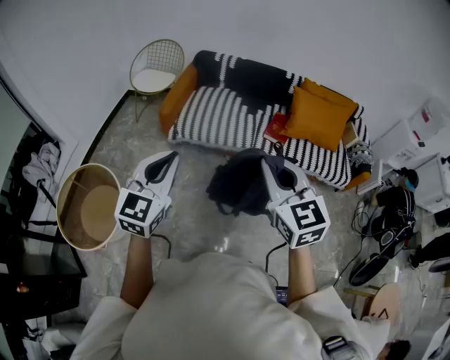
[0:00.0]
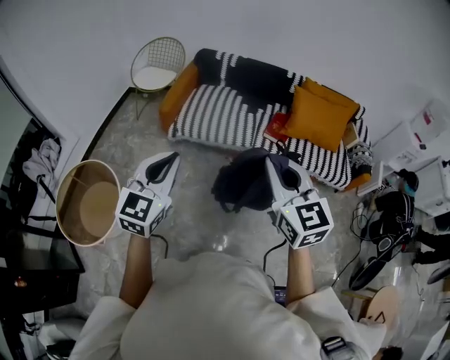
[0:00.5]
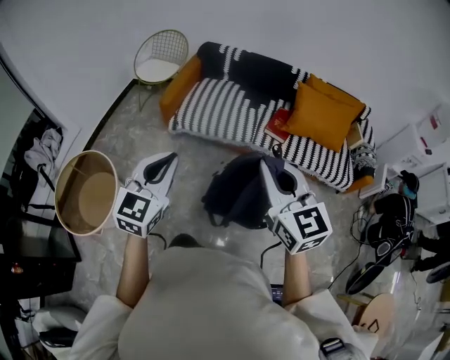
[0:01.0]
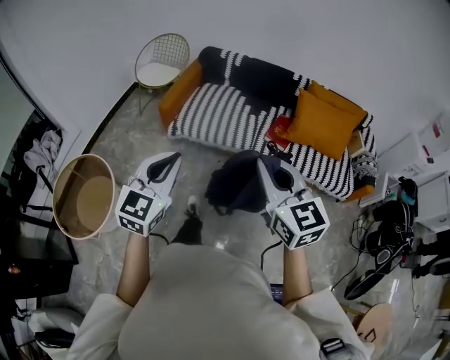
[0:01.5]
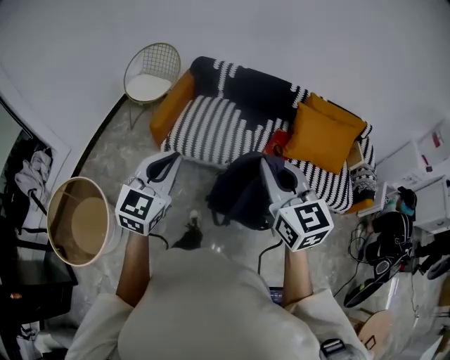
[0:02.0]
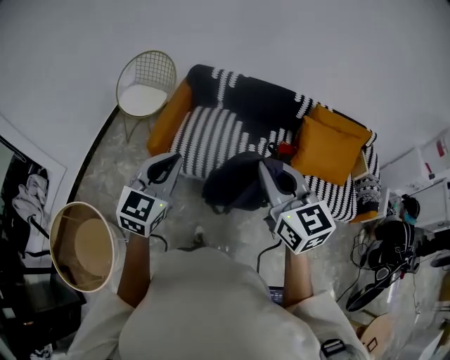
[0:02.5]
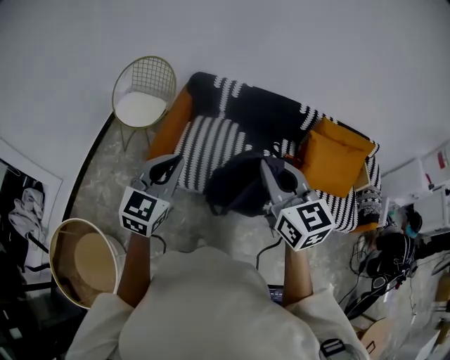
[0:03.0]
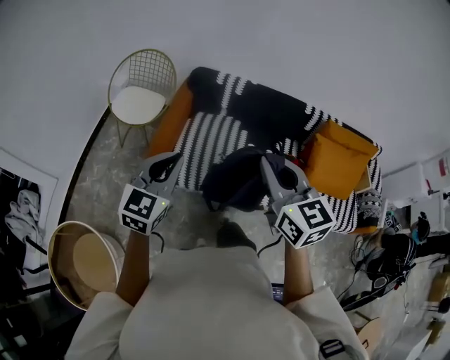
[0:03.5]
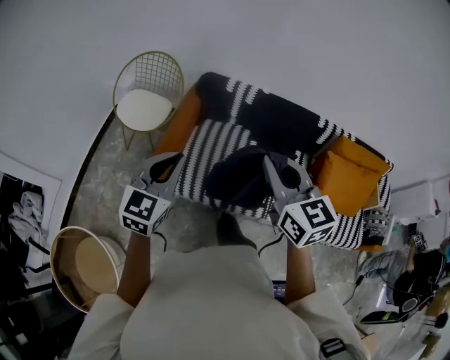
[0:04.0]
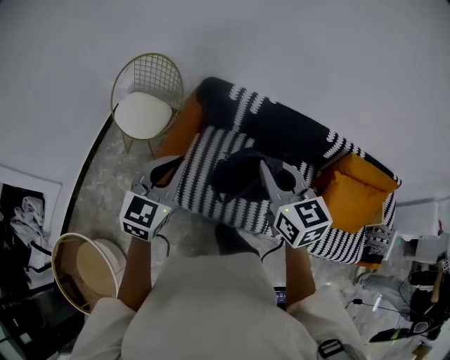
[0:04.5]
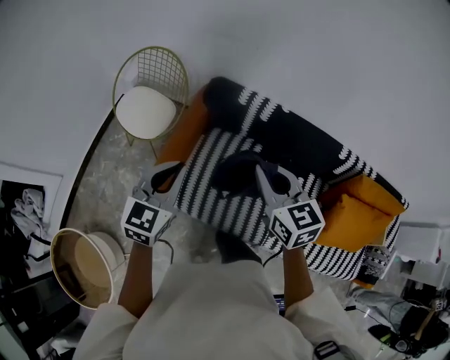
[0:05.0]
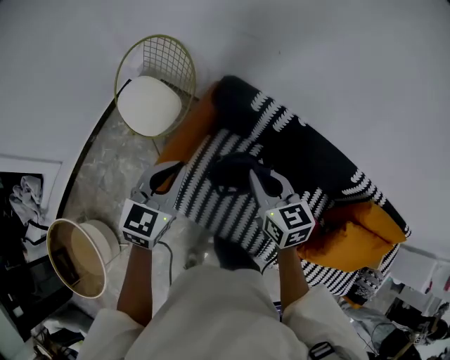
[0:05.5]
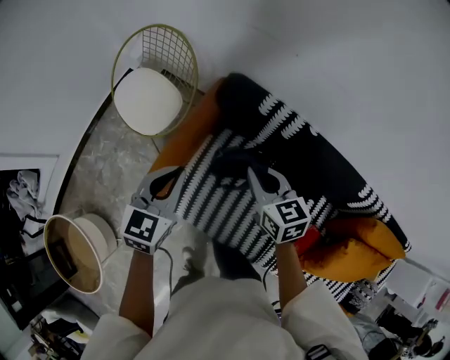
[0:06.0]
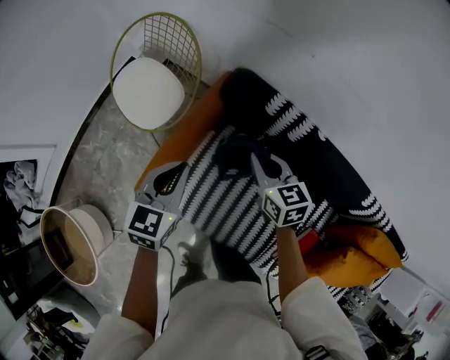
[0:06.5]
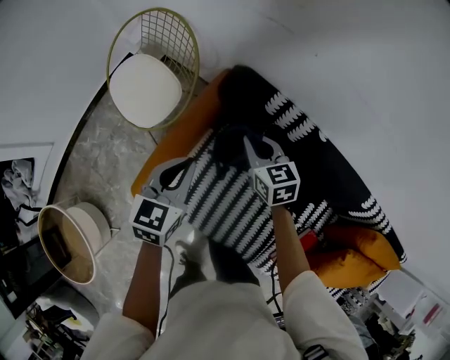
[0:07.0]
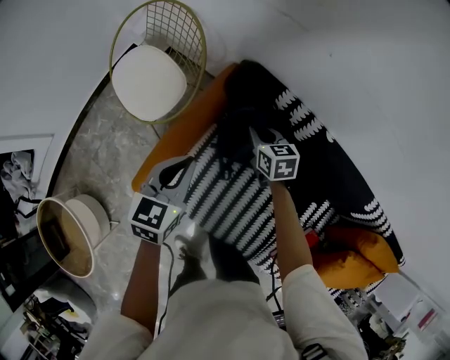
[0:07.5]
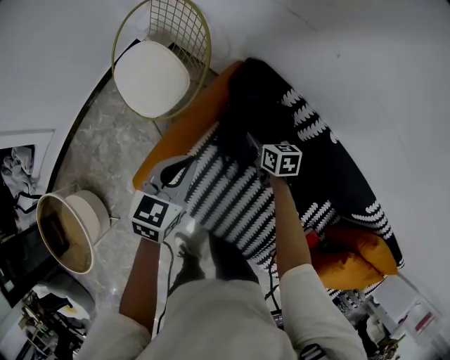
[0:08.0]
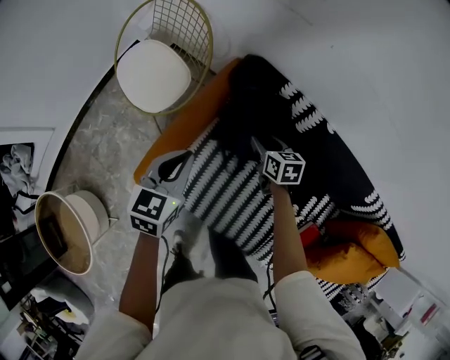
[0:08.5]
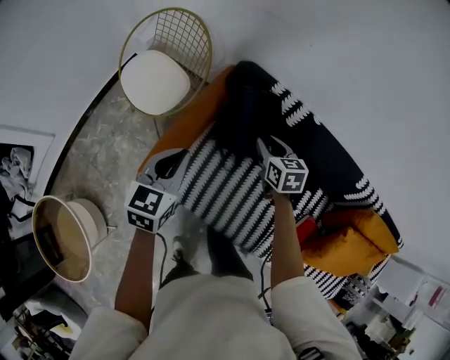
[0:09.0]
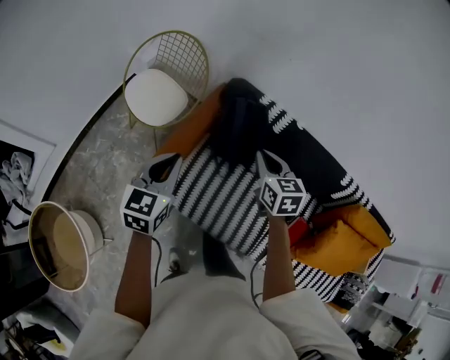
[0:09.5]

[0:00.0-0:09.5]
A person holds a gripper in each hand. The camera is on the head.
0:00.0 to 0:02.0: The two grippers go roughly 20 cm forward.
0:02.0 to 0:04.0: The two grippers travel together, forward, some 50 cm.
0:04.0 to 0:05.5: The left gripper goes about 30 cm forward. The right gripper goes approximately 40 cm forward and downward, and rotates some 20 degrees.
0:05.5 to 0:07.5: The right gripper goes about 35 cm downward and forward. Meanwhile the left gripper shifts roughly 20 cm downward and forward.
0:07.5 to 0:09.5: The left gripper heads backward, upward and to the left, covering approximately 25 cm. The right gripper is displaced backward and upward by some 35 cm, and opens, then closes once more.

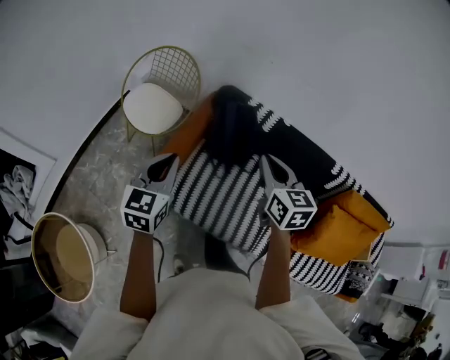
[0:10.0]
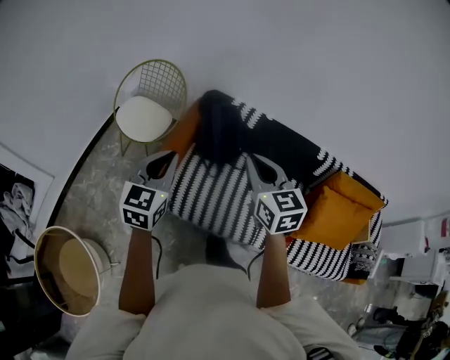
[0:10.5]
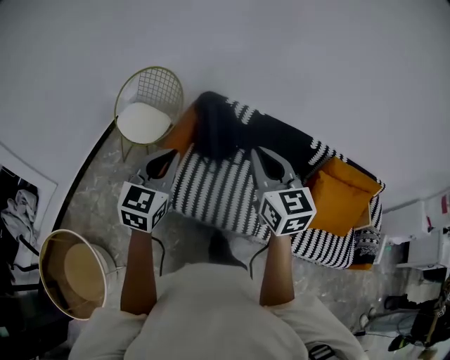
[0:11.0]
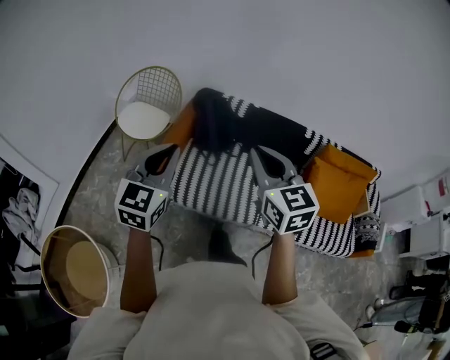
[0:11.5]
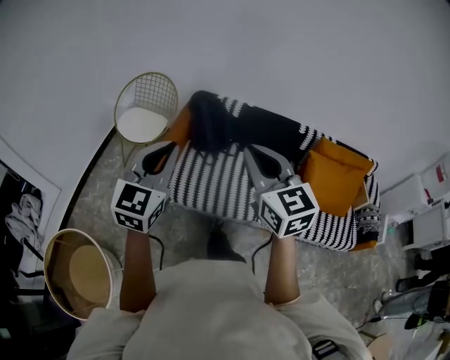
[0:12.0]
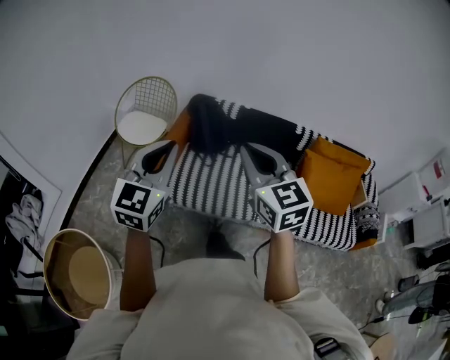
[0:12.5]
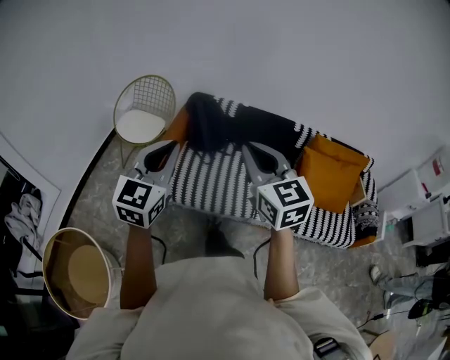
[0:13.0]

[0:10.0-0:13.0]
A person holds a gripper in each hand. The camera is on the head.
0:10.0 to 0:11.5: The two grippers go about 30 cm backward and upward. The left gripper turns by some 20 degrees.
0:11.5 to 0:13.0: Both grippers travel together backward, some 10 cm.

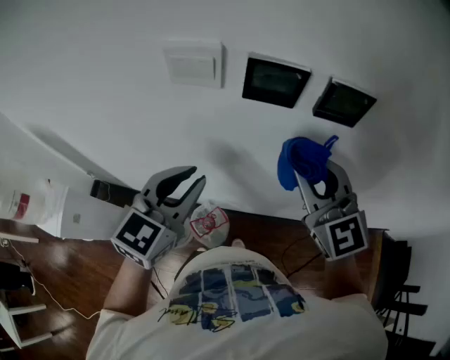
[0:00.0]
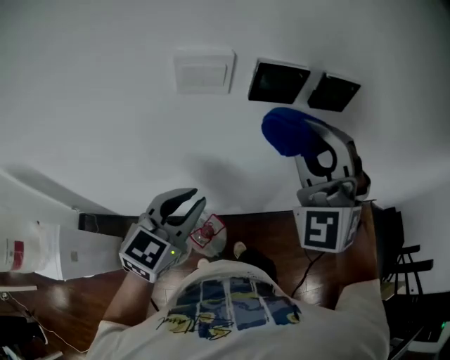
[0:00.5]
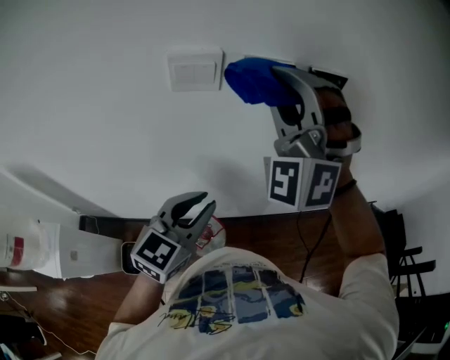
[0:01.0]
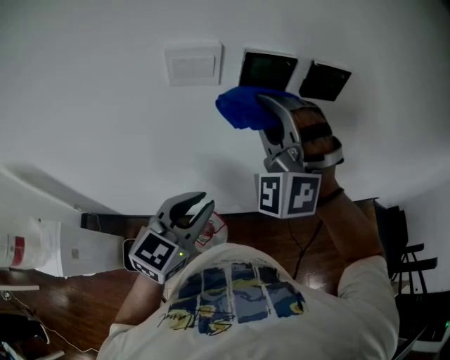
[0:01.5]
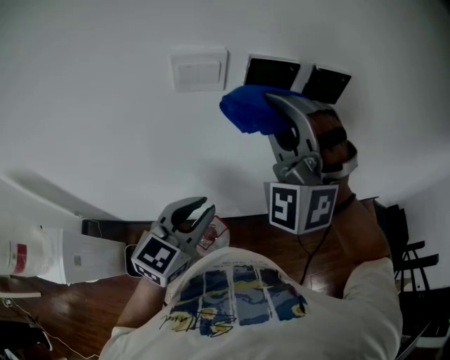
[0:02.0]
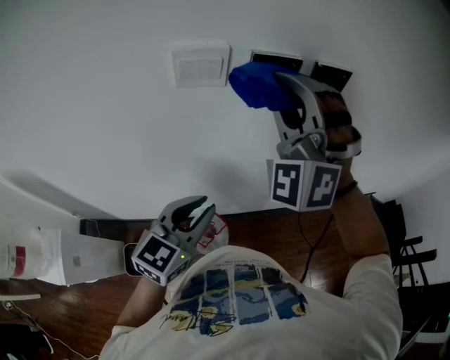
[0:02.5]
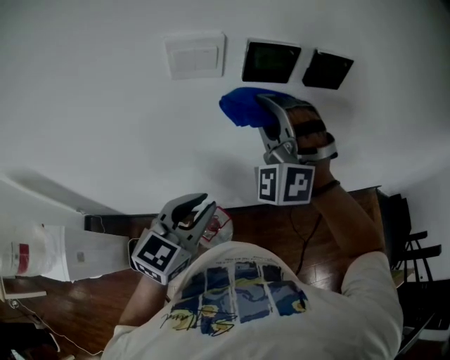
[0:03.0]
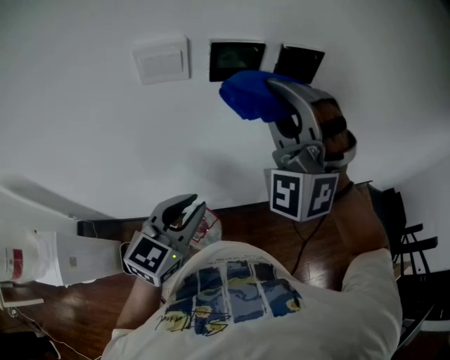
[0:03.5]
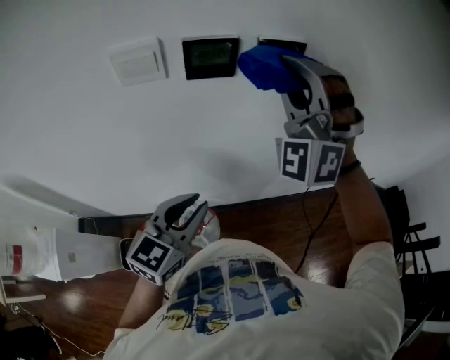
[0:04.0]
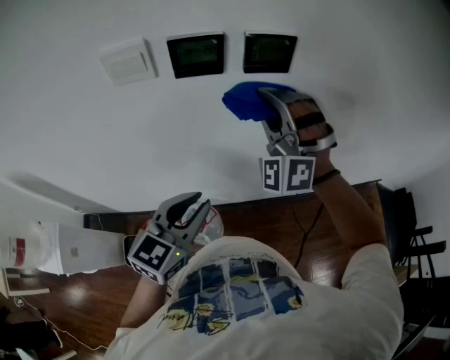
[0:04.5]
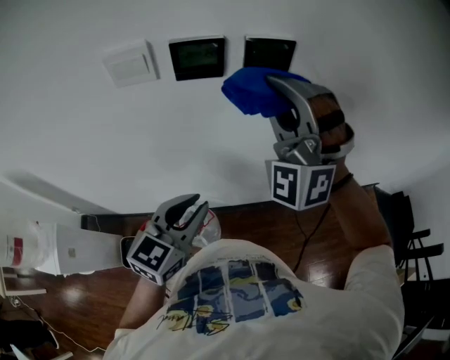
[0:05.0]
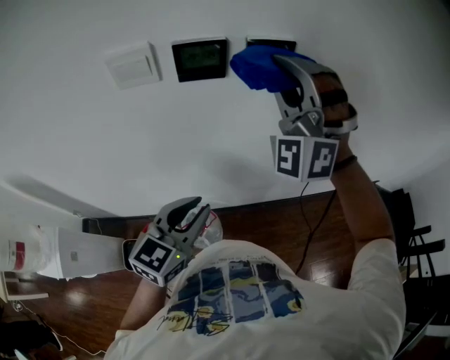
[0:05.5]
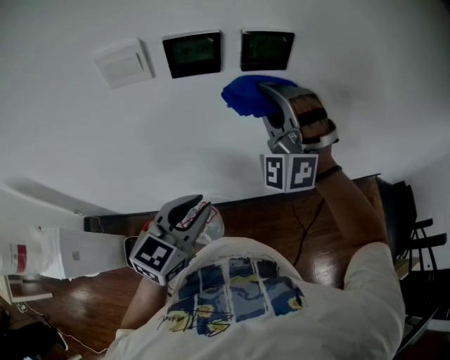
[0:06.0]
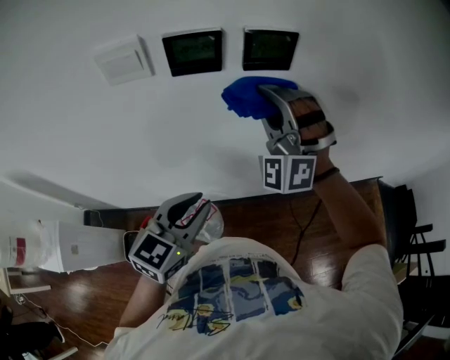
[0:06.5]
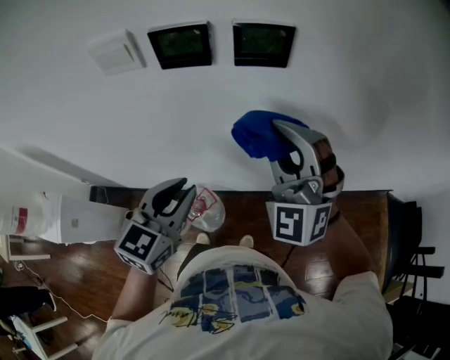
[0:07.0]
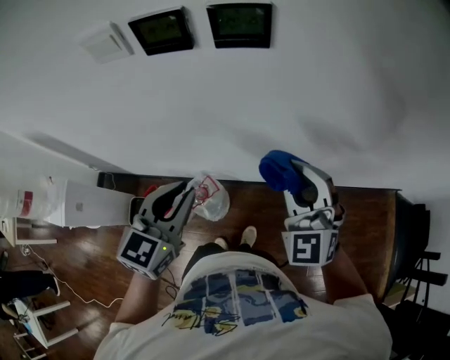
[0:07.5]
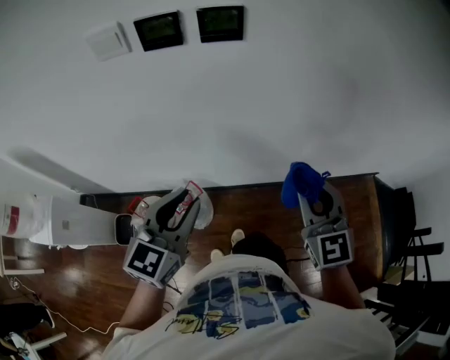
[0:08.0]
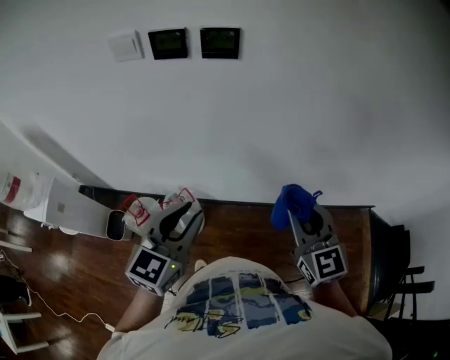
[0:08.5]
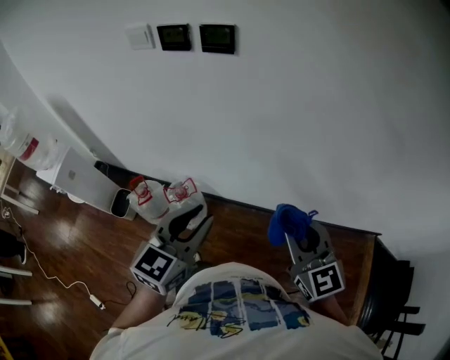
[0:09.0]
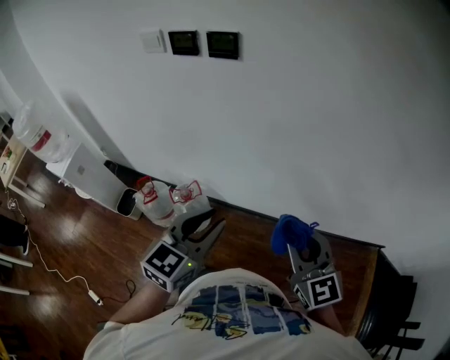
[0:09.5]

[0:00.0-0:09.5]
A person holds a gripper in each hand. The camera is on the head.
0:00.0 to 0:02.0: The right gripper moves up and down over some 15 cm, changing direction 2 times, and twists roughly 60 degrees counterclockwise, seen from behind. Meanwhile the left gripper moves backward, roughly 5 cm.
0:02.0 to 0:04.0: The right gripper travels to the right and forward by some 15 cm, while the left gripper shifts roughly 10 cm to the right.
0:04.0 to 0:05.5: The right gripper travels downward and back again, about 10 cm each way.
0:05.5 to 0:07.5: The right gripper travels downward, to the right and backward by about 25 cm, and rotates around the line of its fingers by some 40 degrees, clockwise from behind.
0:07.5 to 0:09.5: The right gripper travels backward and to the right by roughly 30 cm, and turns by some 40 degrees. The left gripper goes about 30 cm to the right and backward.

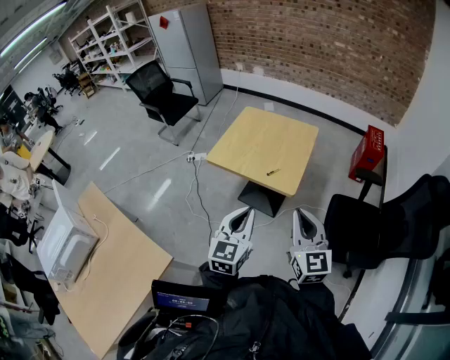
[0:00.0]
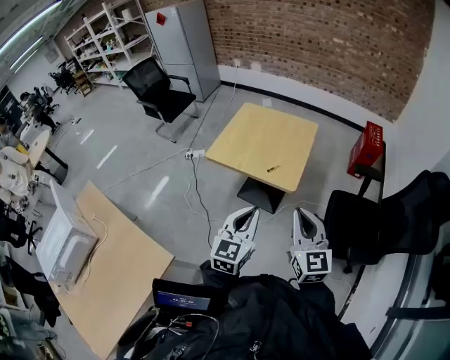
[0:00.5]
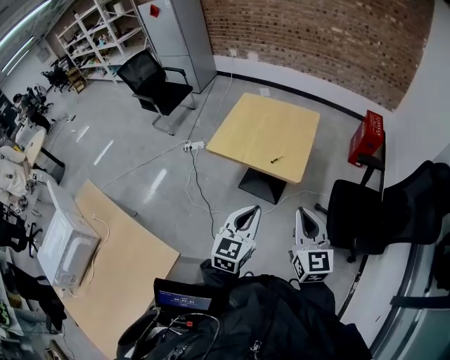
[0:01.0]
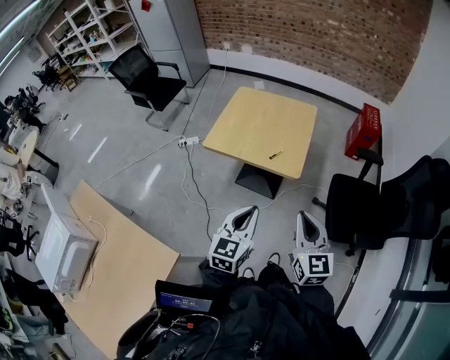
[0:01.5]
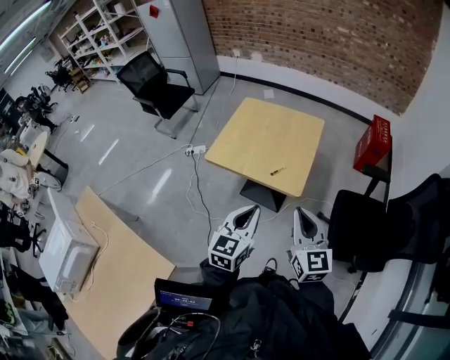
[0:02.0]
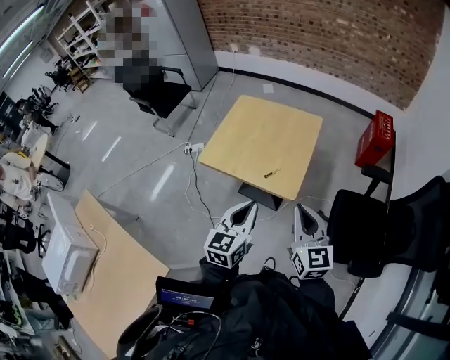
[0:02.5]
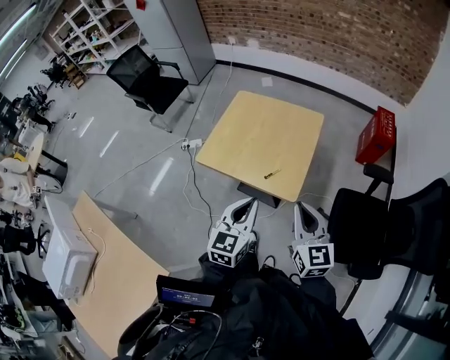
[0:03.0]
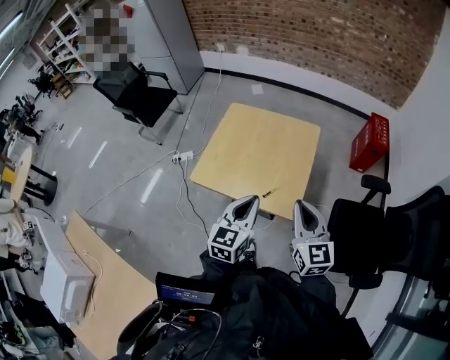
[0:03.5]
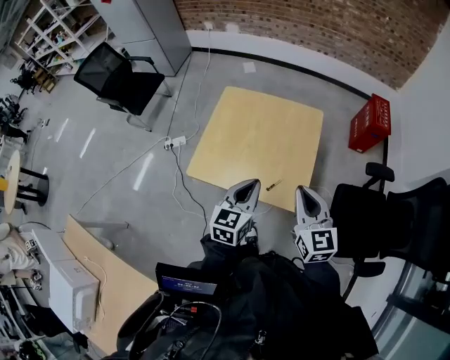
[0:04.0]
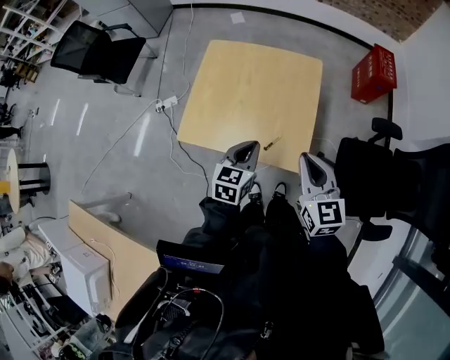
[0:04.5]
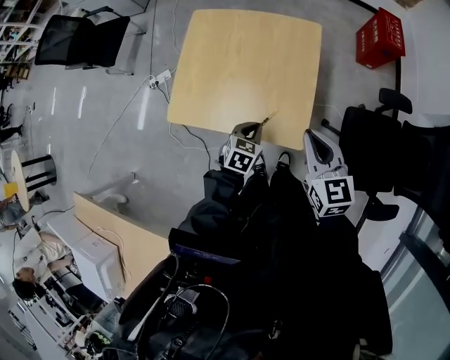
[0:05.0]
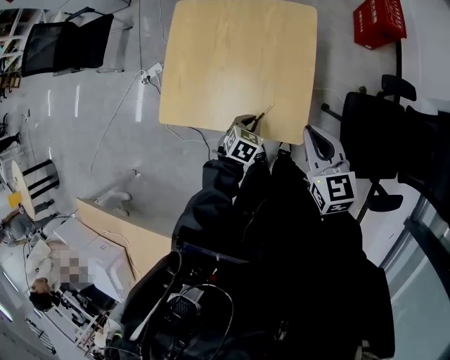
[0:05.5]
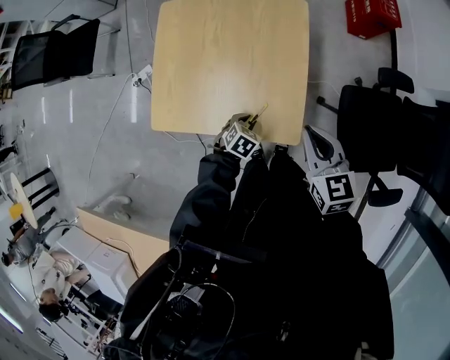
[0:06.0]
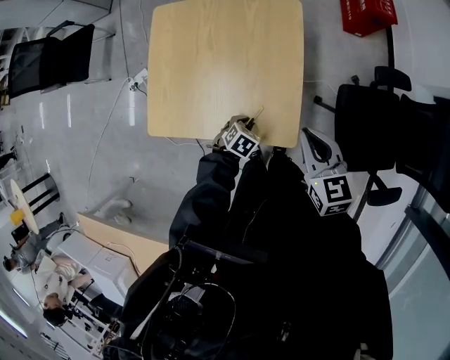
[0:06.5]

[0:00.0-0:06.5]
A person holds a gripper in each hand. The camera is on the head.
0:00.0 to 0:02.0: The two grippers go approximately 10 cm forward.
0:02.0 to 0:04.5: The left gripper heads forward and downward, covering about 35 cm, and rotates approximately 20 degrees. Meanwhile the right gripper is displaced forward by about 25 cm.
0:04.5 to 0:06.5: The left gripper is displaced downward by about 30 cm, and tips its fingers downward by some 40 degrees, while the right gripper heads downward, forward and to the right, covering roughly 15 cm.
